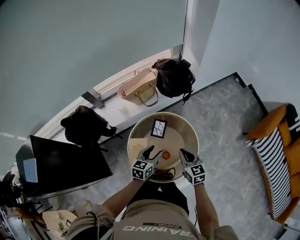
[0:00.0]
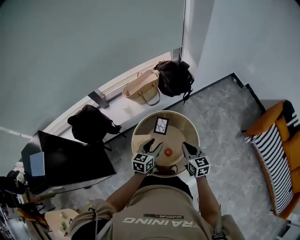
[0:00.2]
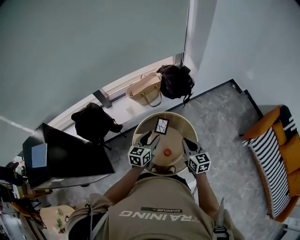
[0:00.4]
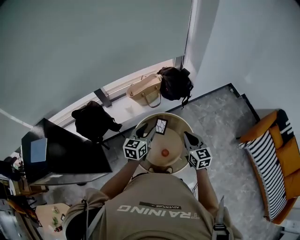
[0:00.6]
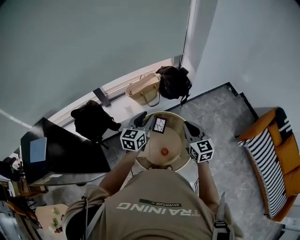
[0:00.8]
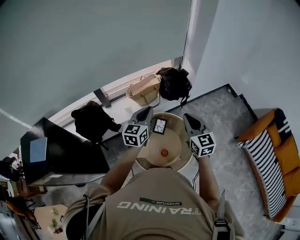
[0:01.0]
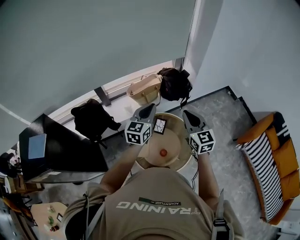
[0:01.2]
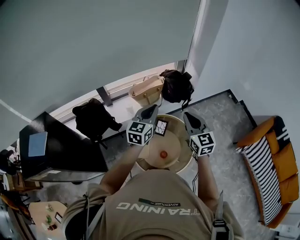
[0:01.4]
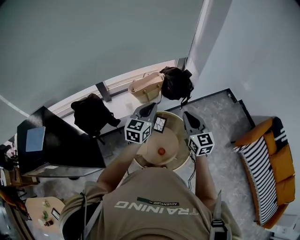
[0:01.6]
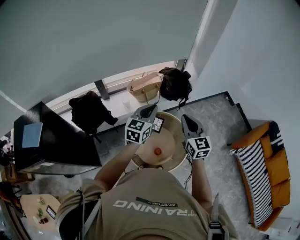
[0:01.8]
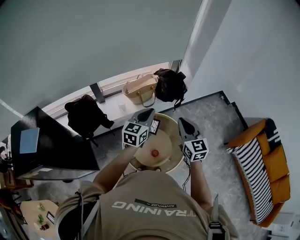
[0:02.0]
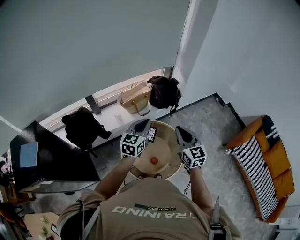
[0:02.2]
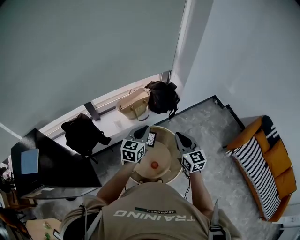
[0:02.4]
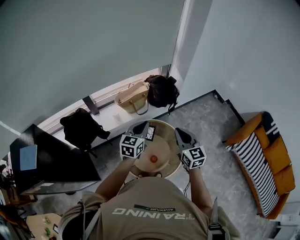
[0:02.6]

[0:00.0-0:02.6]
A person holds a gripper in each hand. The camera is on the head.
0:00.0 to 0:01.2: The two grippers go approximately 25 cm upward. The left gripper rotates some 30 degrees, and closes its fingers. Meanwhile the right gripper swivels about 30 degrees.
0:01.2 to 0:02.6: The left gripper shifts by some 5 cm.

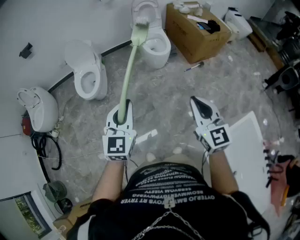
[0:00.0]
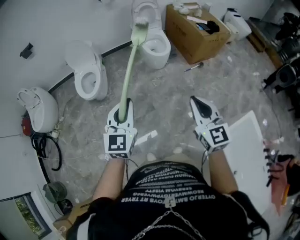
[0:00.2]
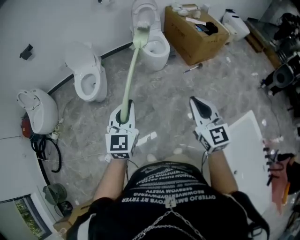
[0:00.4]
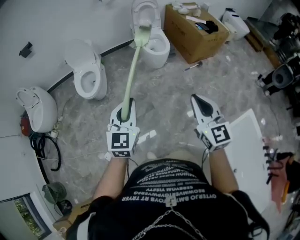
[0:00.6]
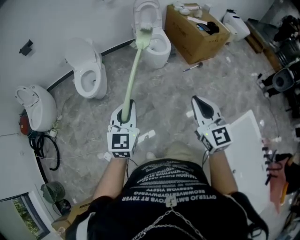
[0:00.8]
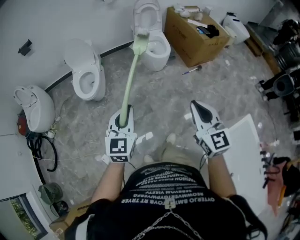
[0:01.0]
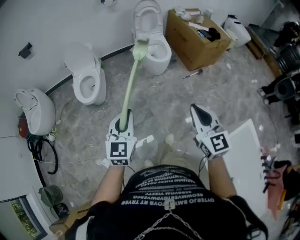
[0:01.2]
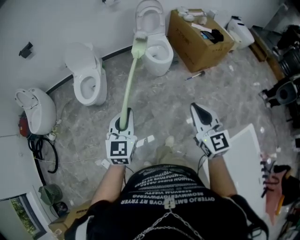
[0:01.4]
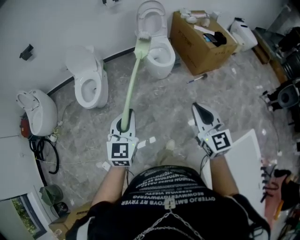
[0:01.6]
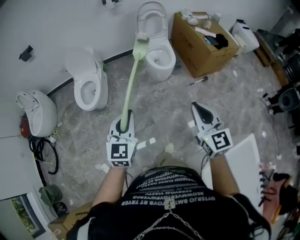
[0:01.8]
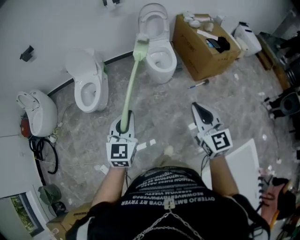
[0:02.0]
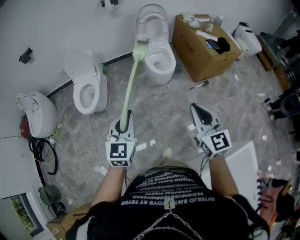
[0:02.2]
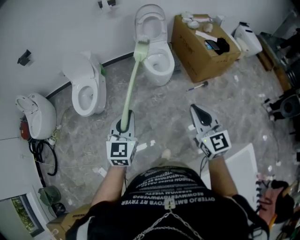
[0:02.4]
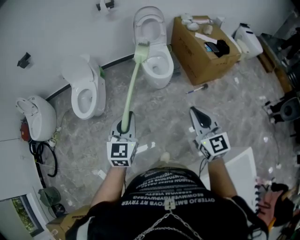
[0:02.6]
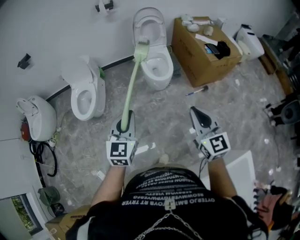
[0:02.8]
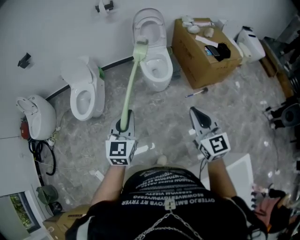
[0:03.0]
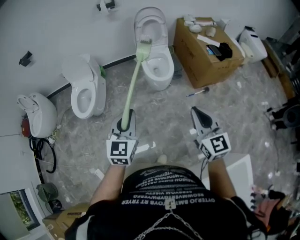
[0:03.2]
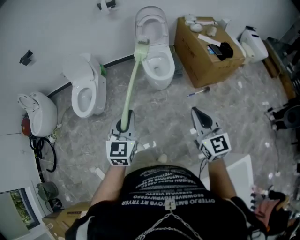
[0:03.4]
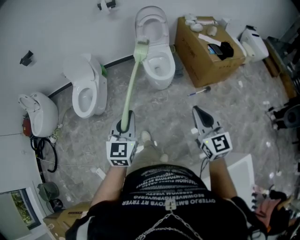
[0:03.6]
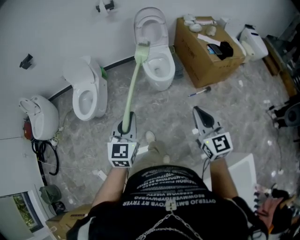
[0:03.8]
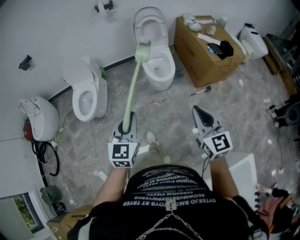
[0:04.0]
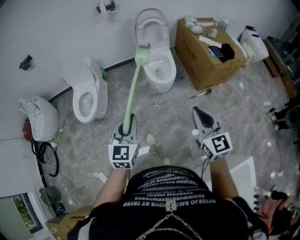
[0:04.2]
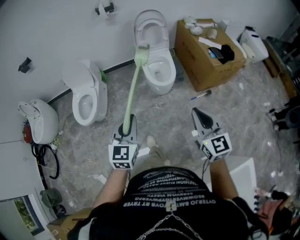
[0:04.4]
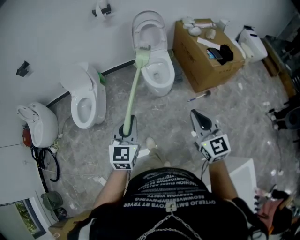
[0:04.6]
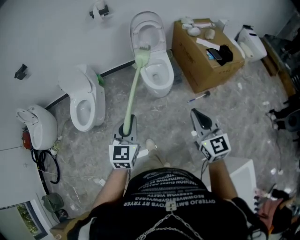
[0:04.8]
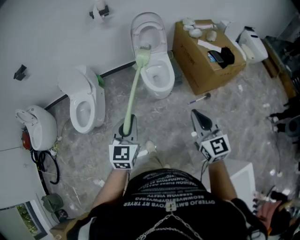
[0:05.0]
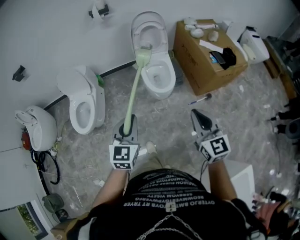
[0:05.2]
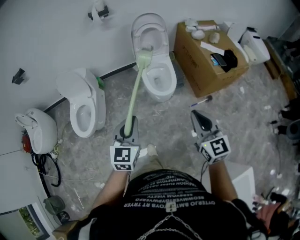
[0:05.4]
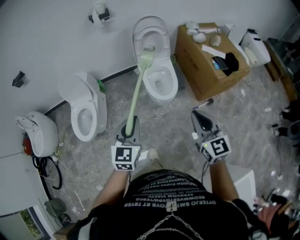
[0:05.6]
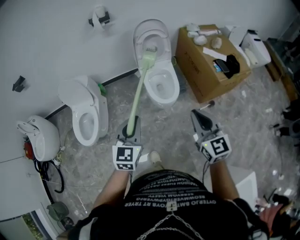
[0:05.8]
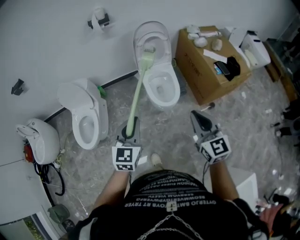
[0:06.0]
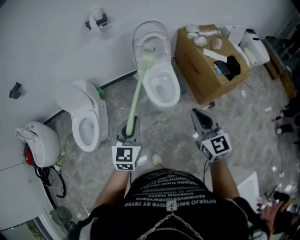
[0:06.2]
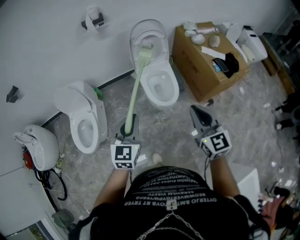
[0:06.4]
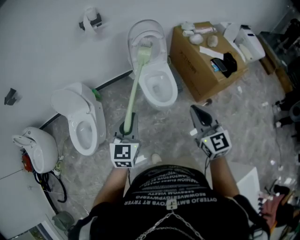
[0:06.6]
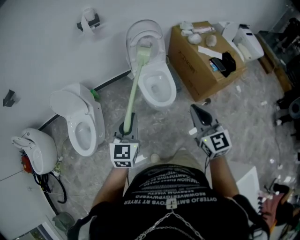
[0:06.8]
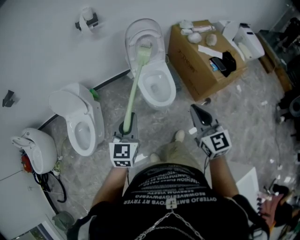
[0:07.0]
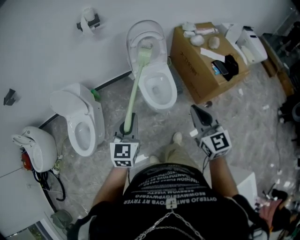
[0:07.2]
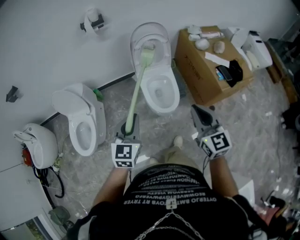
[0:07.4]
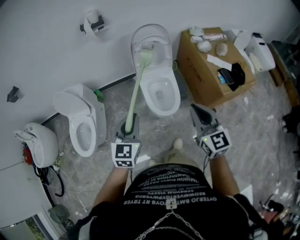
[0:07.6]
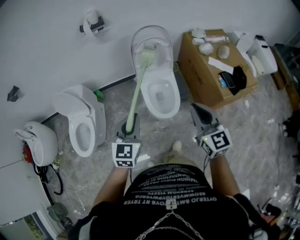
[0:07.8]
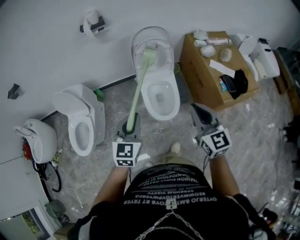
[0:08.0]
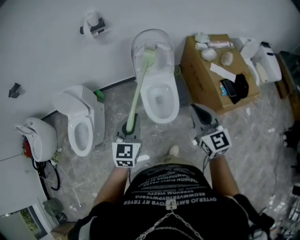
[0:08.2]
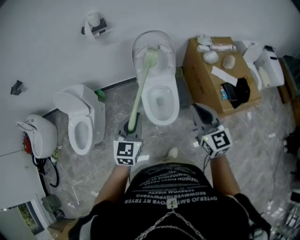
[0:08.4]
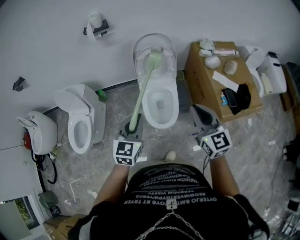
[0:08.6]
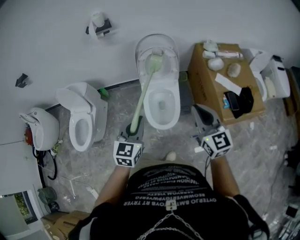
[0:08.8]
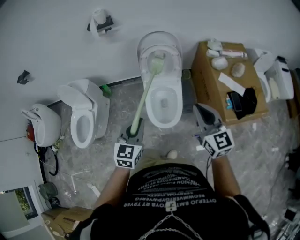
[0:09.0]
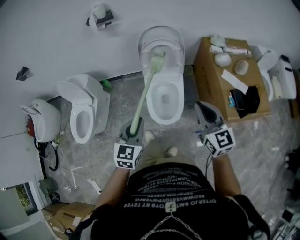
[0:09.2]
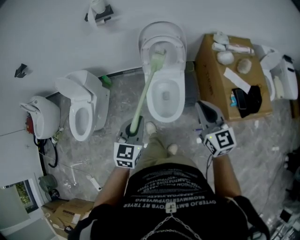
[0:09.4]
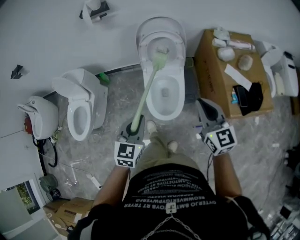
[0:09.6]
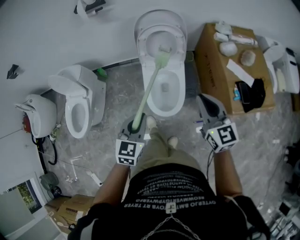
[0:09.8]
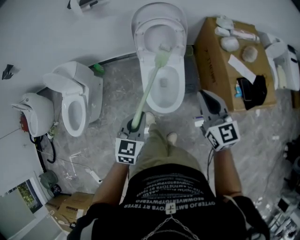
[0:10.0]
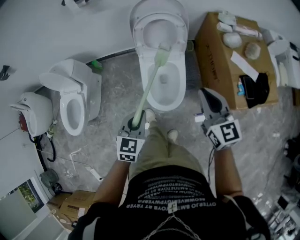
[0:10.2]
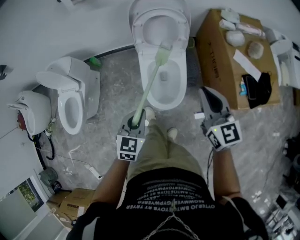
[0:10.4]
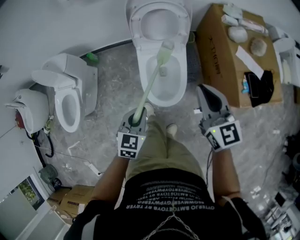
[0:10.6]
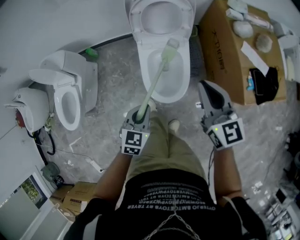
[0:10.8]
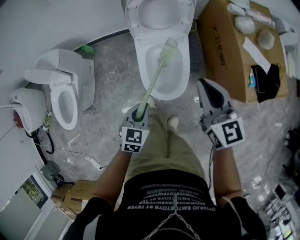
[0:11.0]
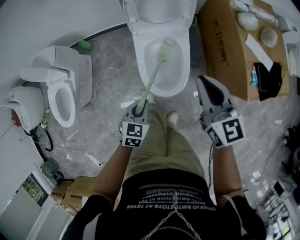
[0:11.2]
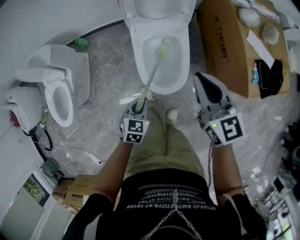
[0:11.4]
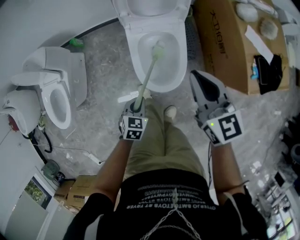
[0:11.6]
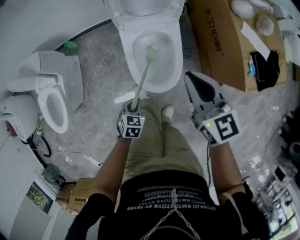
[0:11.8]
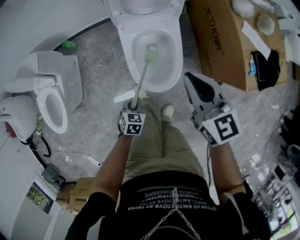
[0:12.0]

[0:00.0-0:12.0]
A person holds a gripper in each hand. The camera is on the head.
0:00.0 to 0:01.6: The grippers both shift forward by about 10 cm.
0:01.6 to 0:03.0: The grippers both shift forward and to the right by about 20 cm.
0:03.0 to 0:04.4: The grippers make only small movements.
0:04.4 to 0:06.0: The two grippers go about 20 cm forward.
0:06.0 to 0:07.6: Both grippers move forward, some 15 cm.
0:07.6 to 0:09.0: The left gripper shifts about 15 cm to the right and forward. The right gripper travels forward and to the right by approximately 20 cm.
0:09.0 to 0:10.4: The right gripper moves downward and forward, roughly 15 cm, while the left gripper shifts some 15 cm downward.
0:10.4 to 0:12.0: The left gripper shifts some 30 cm downward, and swivels approximately 30 degrees, while the right gripper is displaced downward and to the left by some 10 cm.

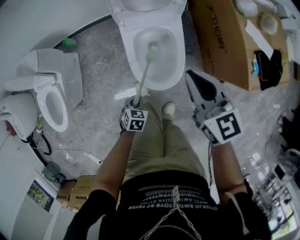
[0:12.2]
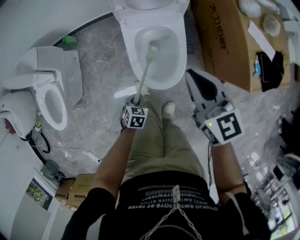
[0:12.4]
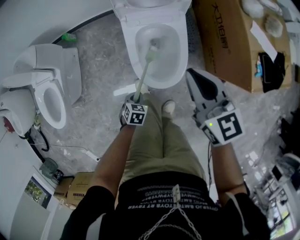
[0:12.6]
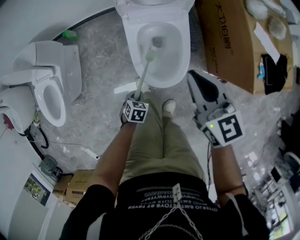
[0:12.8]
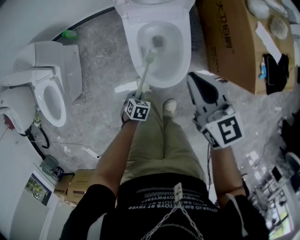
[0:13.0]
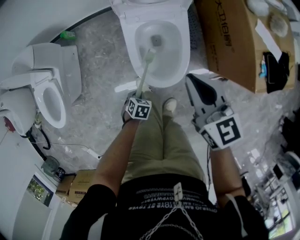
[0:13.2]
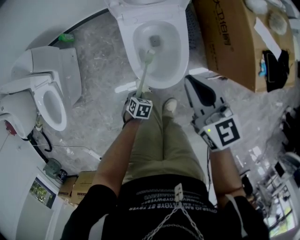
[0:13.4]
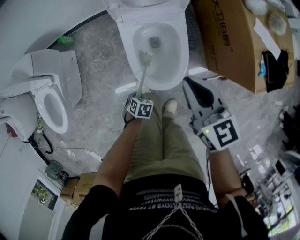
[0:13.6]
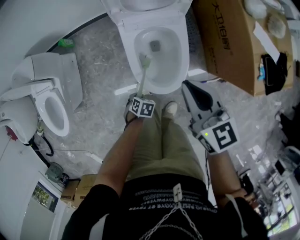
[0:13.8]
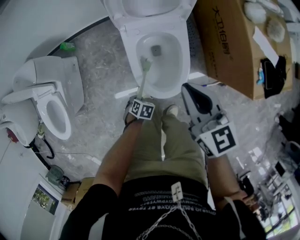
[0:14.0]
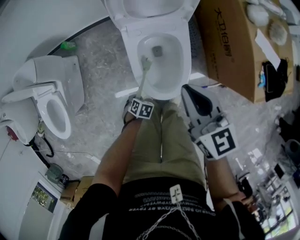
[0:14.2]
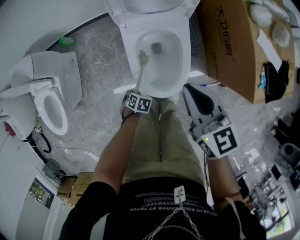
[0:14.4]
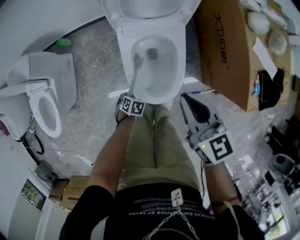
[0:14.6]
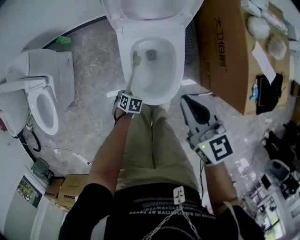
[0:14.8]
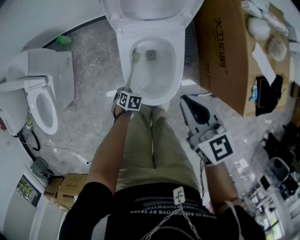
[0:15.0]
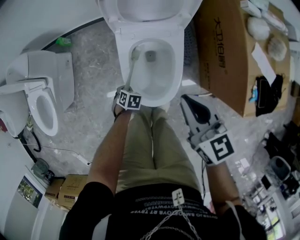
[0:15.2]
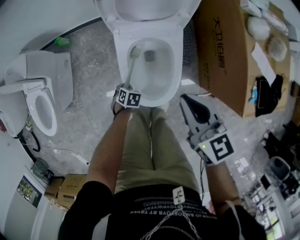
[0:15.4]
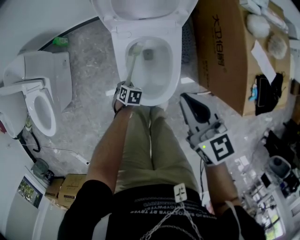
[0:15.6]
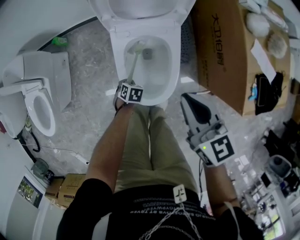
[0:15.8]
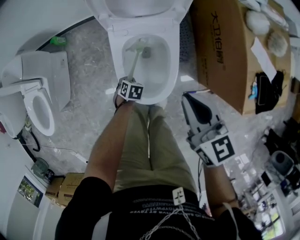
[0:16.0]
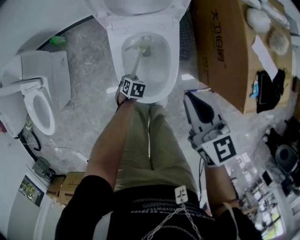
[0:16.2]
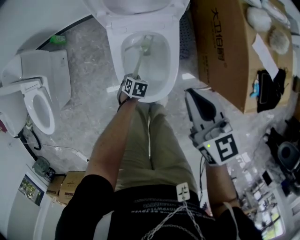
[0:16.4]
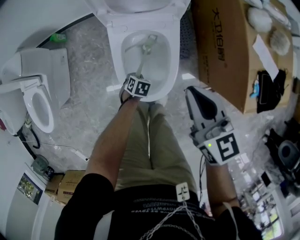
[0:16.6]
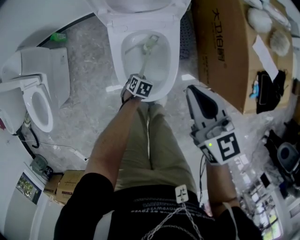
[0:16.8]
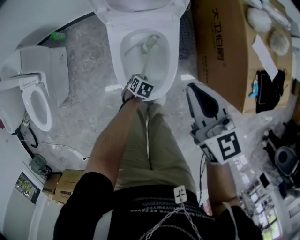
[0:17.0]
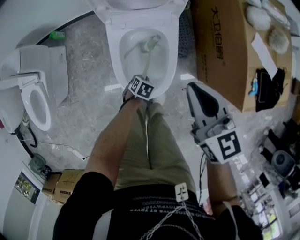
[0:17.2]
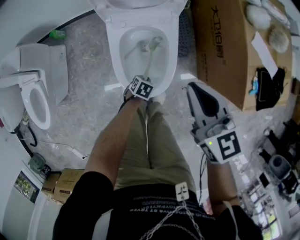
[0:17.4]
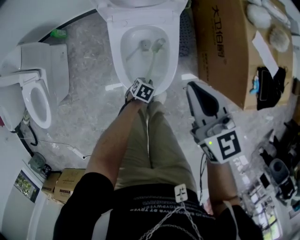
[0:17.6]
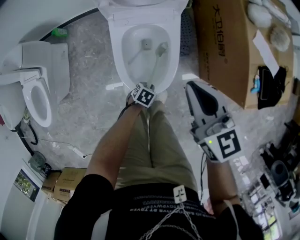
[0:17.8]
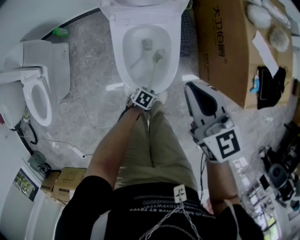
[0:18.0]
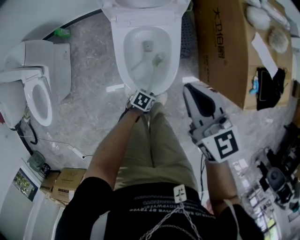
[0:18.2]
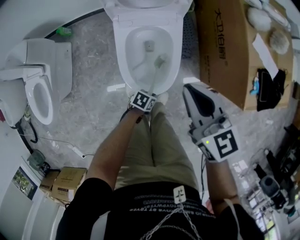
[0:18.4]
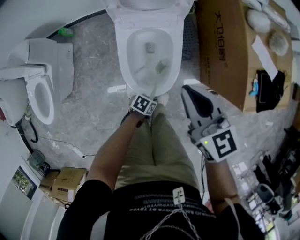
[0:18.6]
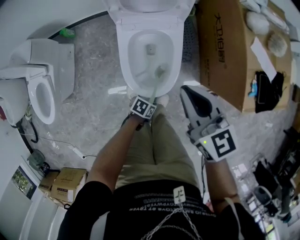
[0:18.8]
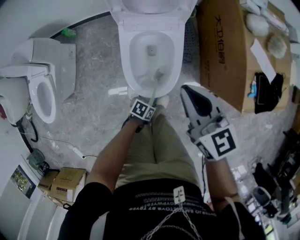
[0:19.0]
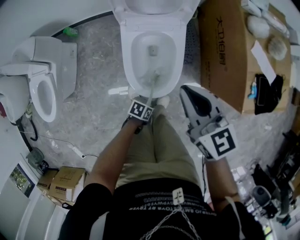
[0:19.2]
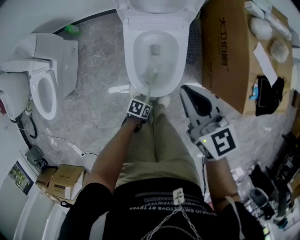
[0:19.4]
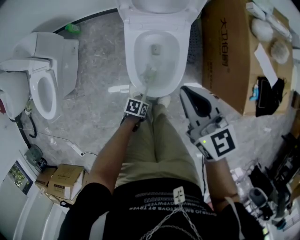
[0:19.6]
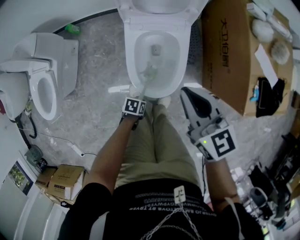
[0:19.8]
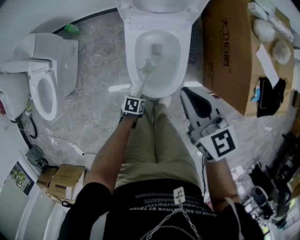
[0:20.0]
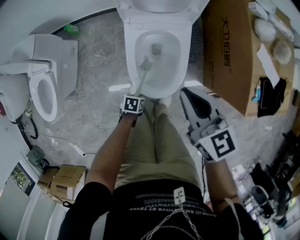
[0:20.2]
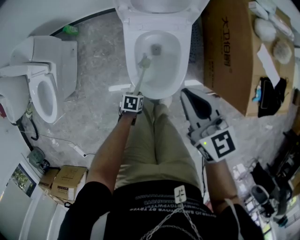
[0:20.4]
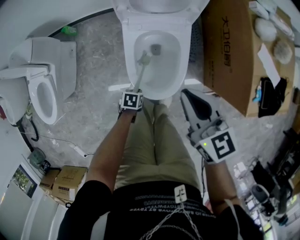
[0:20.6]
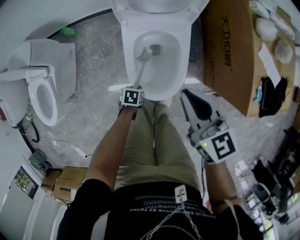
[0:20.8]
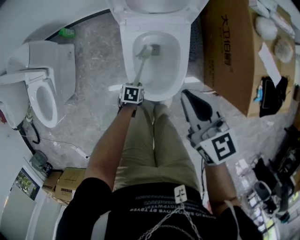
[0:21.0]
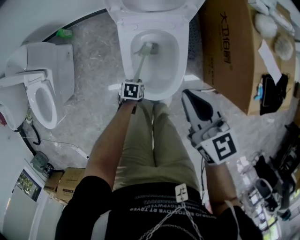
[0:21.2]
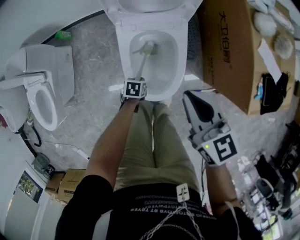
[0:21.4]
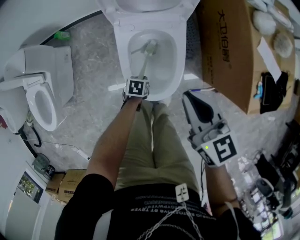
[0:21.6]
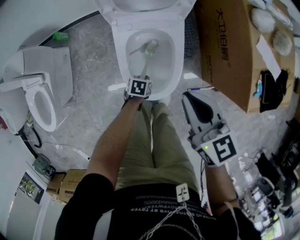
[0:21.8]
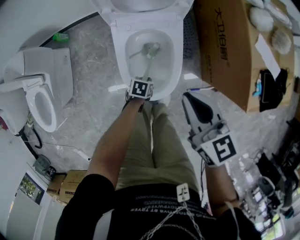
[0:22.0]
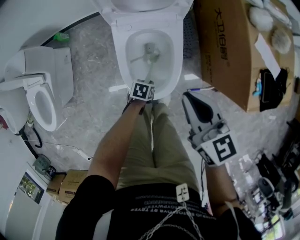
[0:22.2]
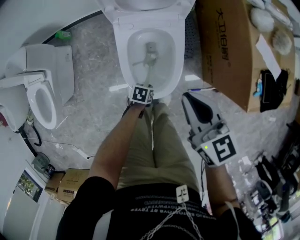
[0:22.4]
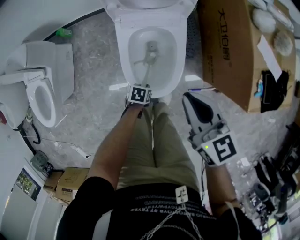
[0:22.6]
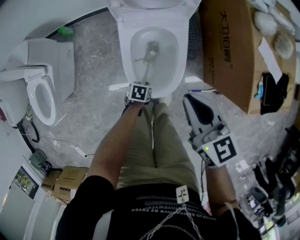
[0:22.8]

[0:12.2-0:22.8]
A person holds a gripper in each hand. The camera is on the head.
0:12.2 to 0:13.8: The right gripper shifts by some 5 cm; the left gripper travels downward by roughly 10 cm, and rotates approximately 20 degrees.
0:13.8 to 0:15.2: The left gripper ends up some 10 cm from where it was.
0:15.2 to 0:16.8: The left gripper changes place by approximately 10 cm.
0:16.8 to 0:18.2: The left gripper shifts by some 15 cm, and rotates about 20 degrees.
0:18.2 to 0:19.8: The left gripper moves approximately 10 cm, and turns by approximately 20 degrees.
0:19.8 to 0:21.2: The left gripper ends up approximately 15 cm from where it was.
0:21.2 to 0:22.8: The left gripper changes place by some 5 cm.
